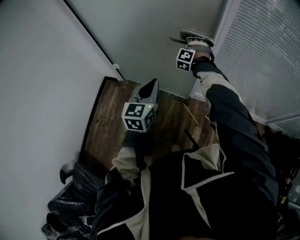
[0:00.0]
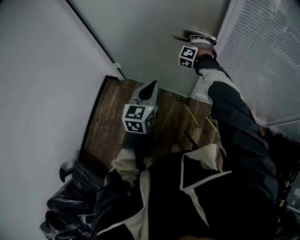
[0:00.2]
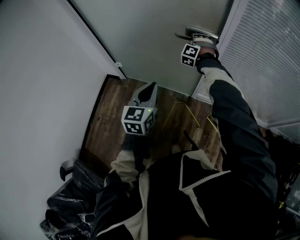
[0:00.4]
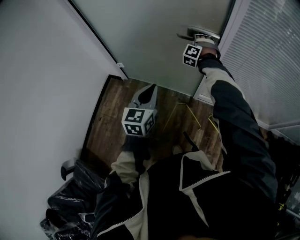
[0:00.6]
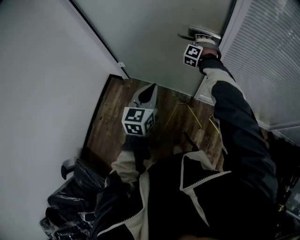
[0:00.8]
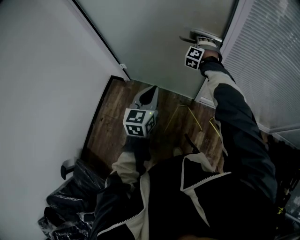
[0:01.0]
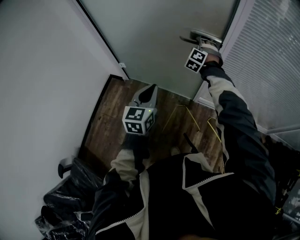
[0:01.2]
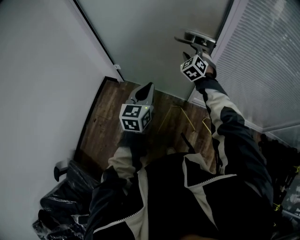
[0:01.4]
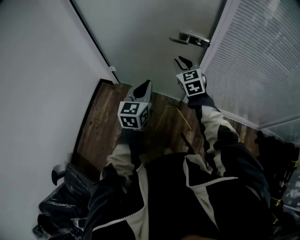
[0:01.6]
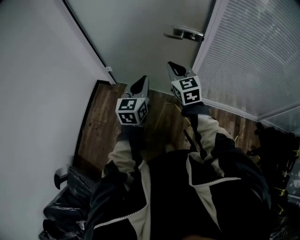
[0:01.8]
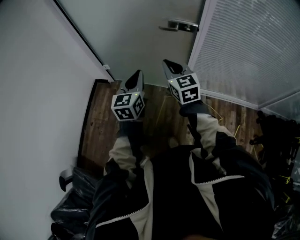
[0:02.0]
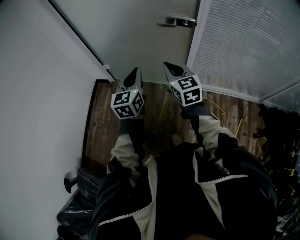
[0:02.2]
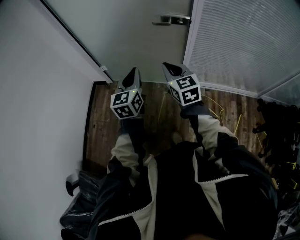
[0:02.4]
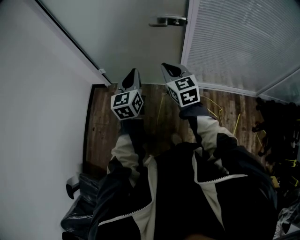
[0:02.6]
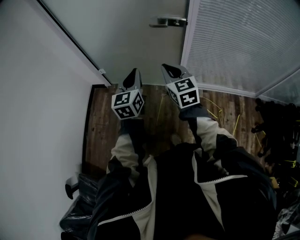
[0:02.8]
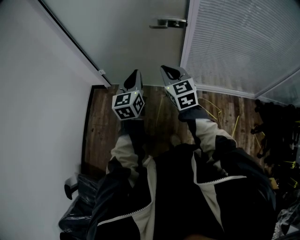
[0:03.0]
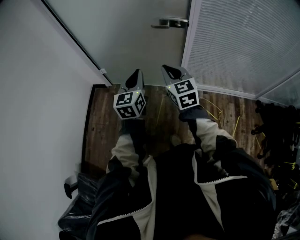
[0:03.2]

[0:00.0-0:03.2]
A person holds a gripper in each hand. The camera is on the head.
0:00.0 to 0:01.6: The right gripper moves backward and upward, approximately 15 cm, twists some 60 degrees clockwise, seen from behind, and opens, then closes once more.
0:01.6 to 0:03.2: The right gripper moves backward, approximately 15 cm.

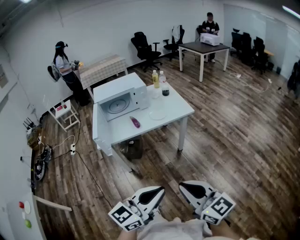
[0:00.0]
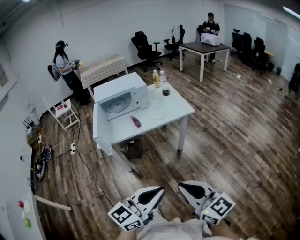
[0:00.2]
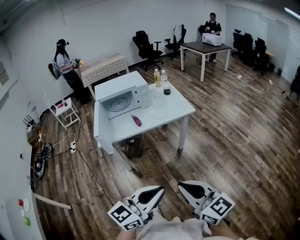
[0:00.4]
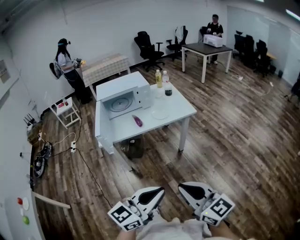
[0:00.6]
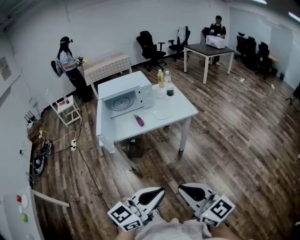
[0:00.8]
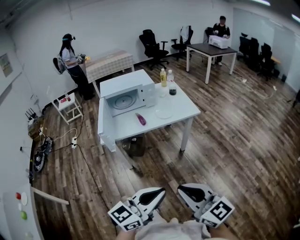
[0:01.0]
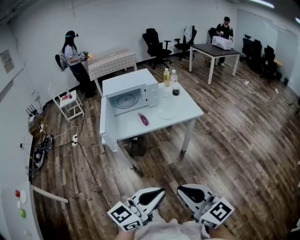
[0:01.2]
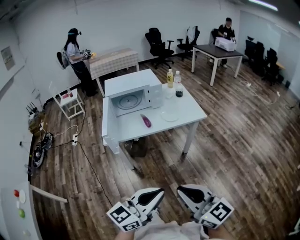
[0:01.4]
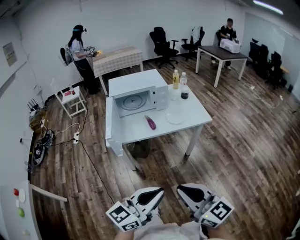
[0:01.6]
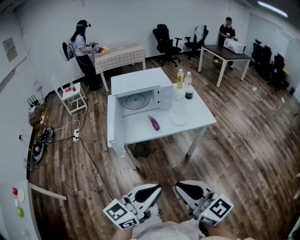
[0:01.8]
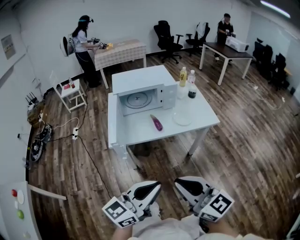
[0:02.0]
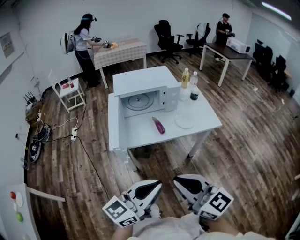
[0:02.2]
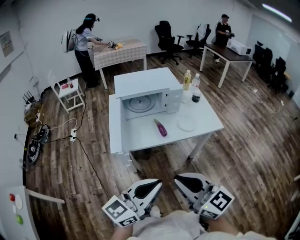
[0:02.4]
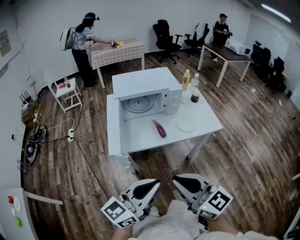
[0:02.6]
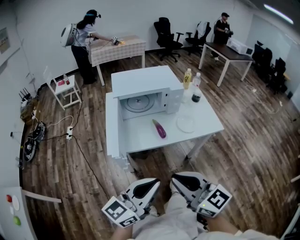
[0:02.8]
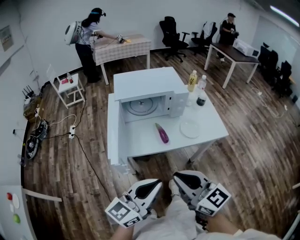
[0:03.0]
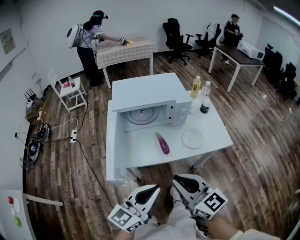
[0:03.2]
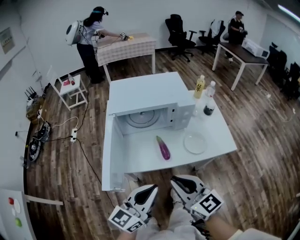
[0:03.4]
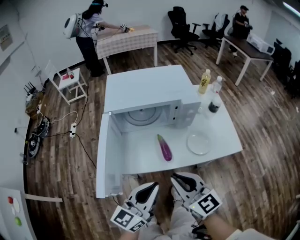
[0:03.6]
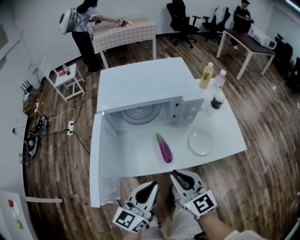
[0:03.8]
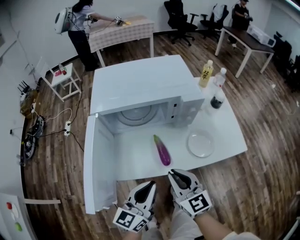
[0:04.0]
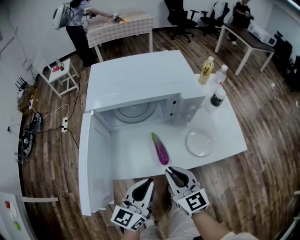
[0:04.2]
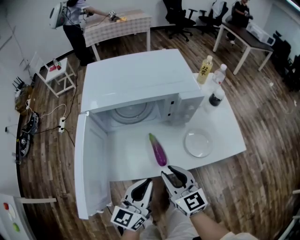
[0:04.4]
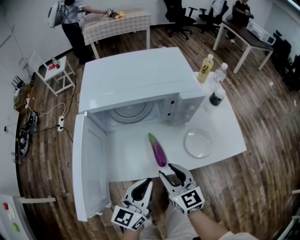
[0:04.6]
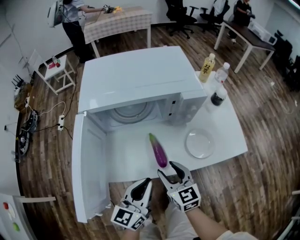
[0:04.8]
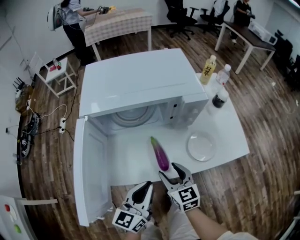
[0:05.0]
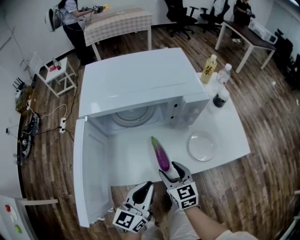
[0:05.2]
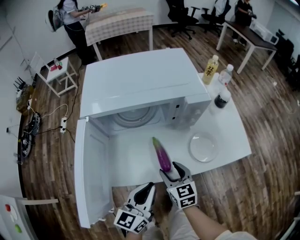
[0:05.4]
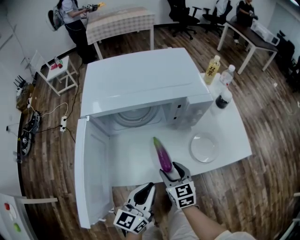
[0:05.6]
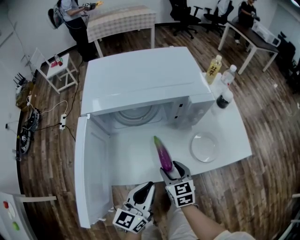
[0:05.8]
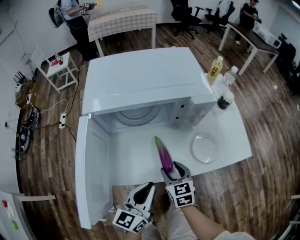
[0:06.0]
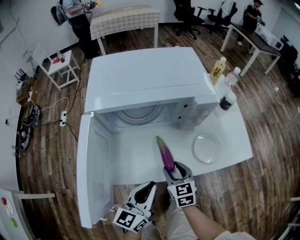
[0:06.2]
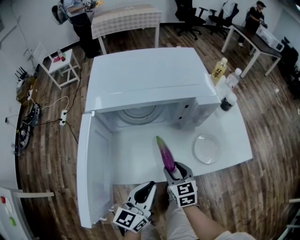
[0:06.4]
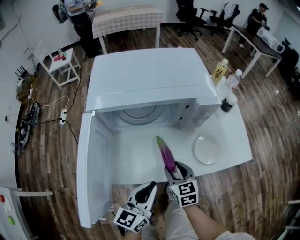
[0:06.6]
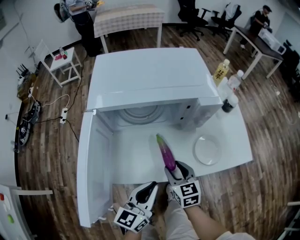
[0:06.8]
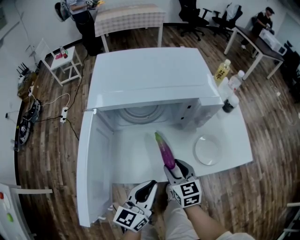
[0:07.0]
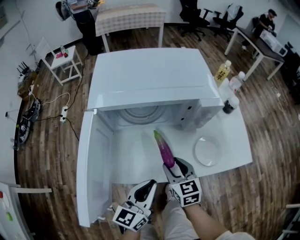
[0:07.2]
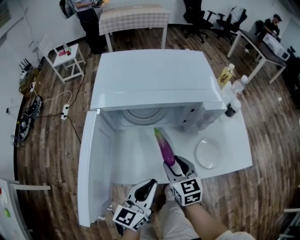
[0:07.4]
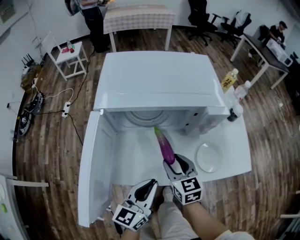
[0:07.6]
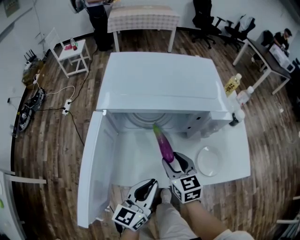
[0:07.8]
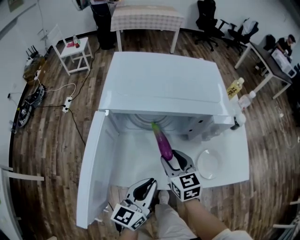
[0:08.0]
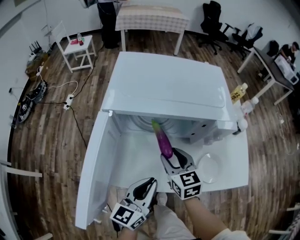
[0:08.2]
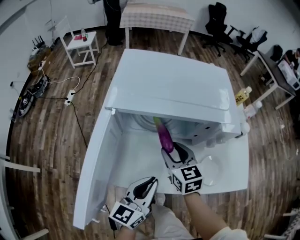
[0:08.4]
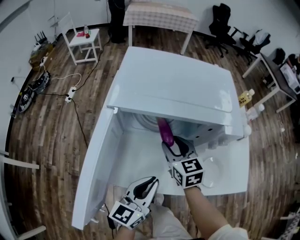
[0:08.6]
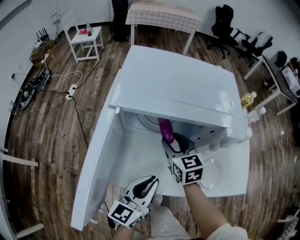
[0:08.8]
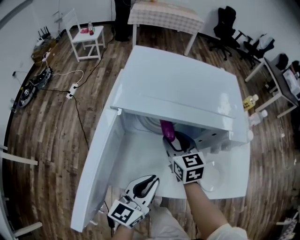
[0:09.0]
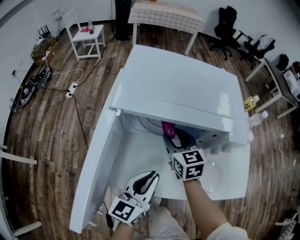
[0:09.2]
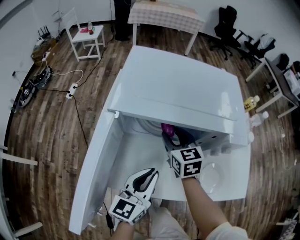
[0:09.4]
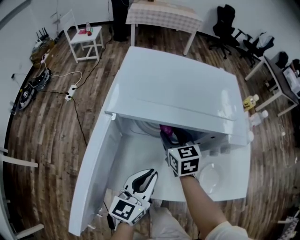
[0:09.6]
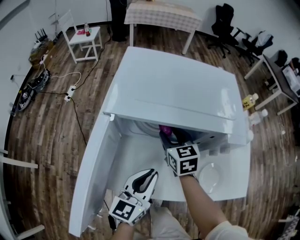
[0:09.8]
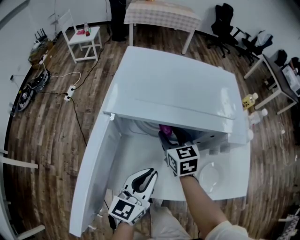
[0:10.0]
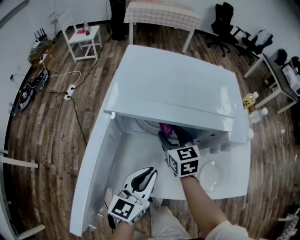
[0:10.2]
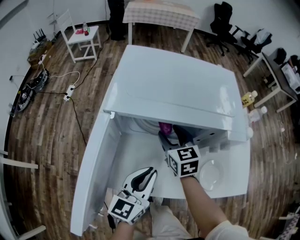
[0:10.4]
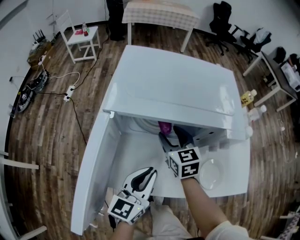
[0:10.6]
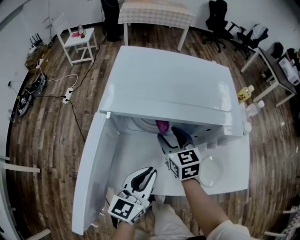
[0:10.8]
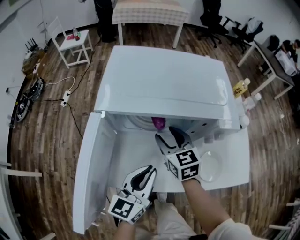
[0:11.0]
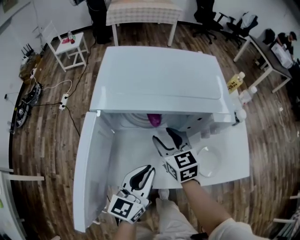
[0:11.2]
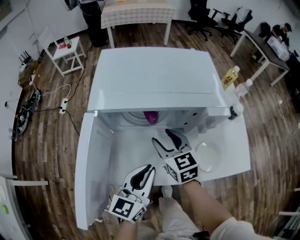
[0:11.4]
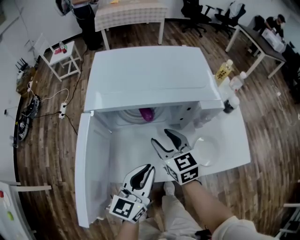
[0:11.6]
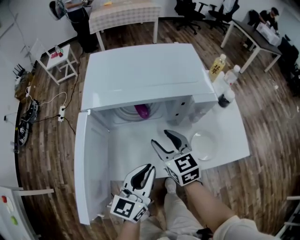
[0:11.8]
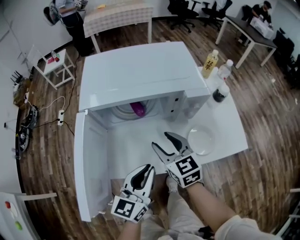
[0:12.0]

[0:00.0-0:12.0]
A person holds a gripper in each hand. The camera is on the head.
0:00.0 to 0:01.6: Both grippers move to the left and forward, roughly 10 cm.
0:01.6 to 0:03.0: The two grippers go roughly 25 cm forward and to the left.
0:03.0 to 0:04.4: The grippers both shift forward and downward by roughly 30 cm. The left gripper rotates approximately 20 degrees.
0:04.4 to 0:06.0: The right gripper travels downward and forward by some 10 cm, changes its angle by some 20 degrees, and opens its fingers.
0:06.0 to 0:07.6: The right gripper travels upward and forward by approximately 5 cm.
0:07.6 to 0:09.0: The left gripper travels forward by some 5 cm. Meanwhile the right gripper goes some 15 cm forward and to the left.
0:09.0 to 0:10.4: The grippers move only a little.
0:10.4 to 0:12.0: The left gripper travels backward by approximately 5 cm, while the right gripper moves backward, some 15 cm.

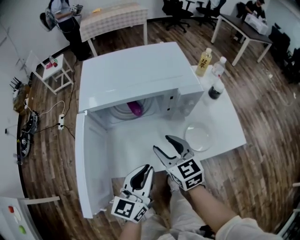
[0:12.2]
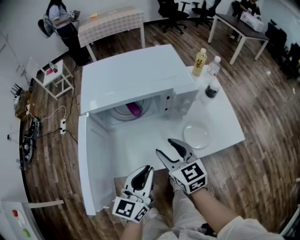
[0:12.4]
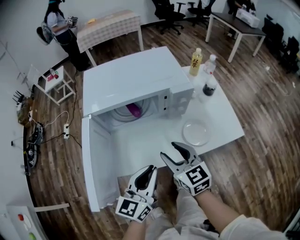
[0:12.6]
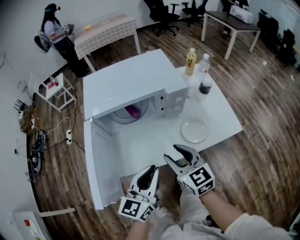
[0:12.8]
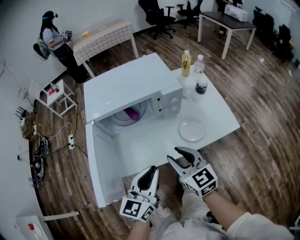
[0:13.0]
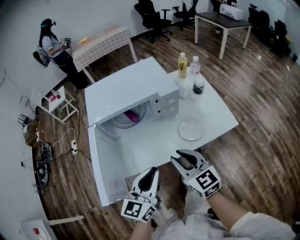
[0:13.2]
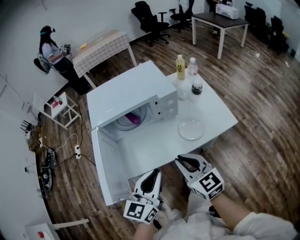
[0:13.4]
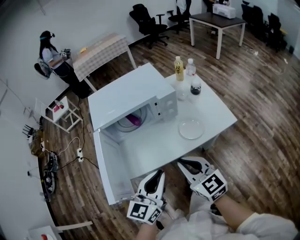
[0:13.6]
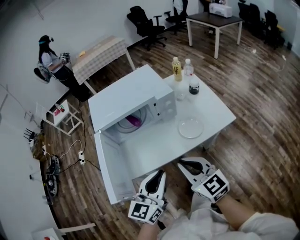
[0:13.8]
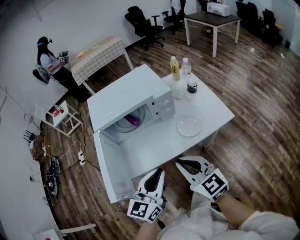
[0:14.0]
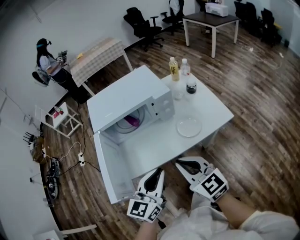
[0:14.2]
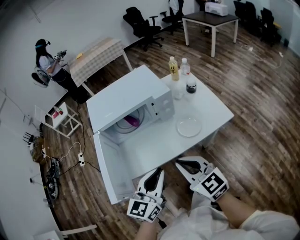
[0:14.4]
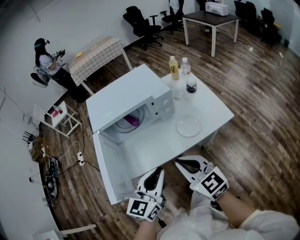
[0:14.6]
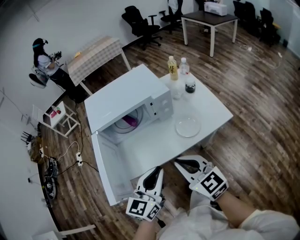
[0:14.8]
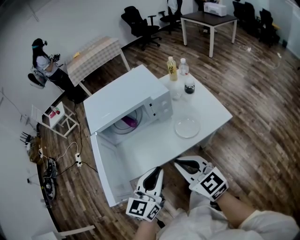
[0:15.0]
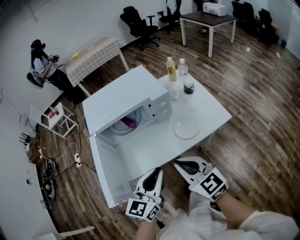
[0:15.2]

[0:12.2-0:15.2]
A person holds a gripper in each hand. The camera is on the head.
0:12.2 to 0:13.8: The right gripper heads backward and upward, covering some 20 cm, and closes up. The left gripper goes approximately 15 cm backward and upward.
0:13.8 to 0:15.2: The grippers stay close to where they were, moving slightly.

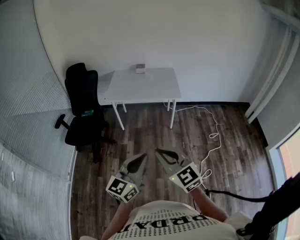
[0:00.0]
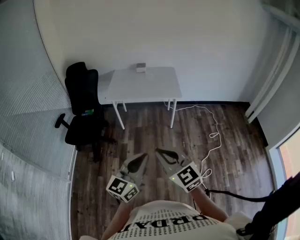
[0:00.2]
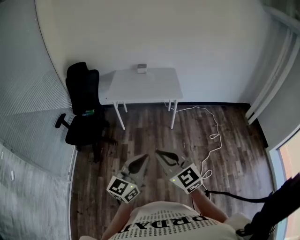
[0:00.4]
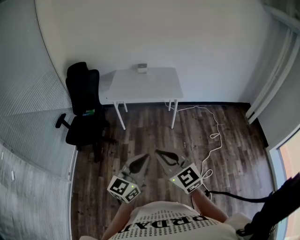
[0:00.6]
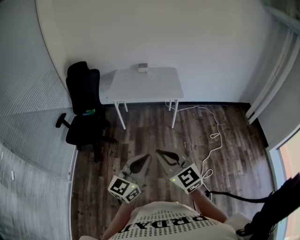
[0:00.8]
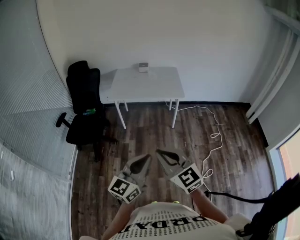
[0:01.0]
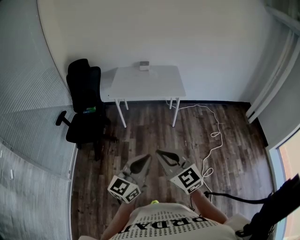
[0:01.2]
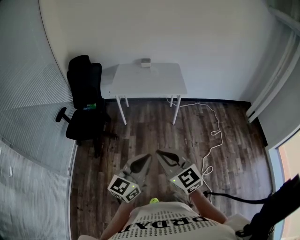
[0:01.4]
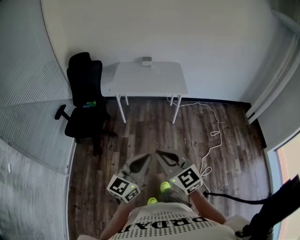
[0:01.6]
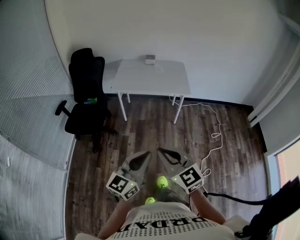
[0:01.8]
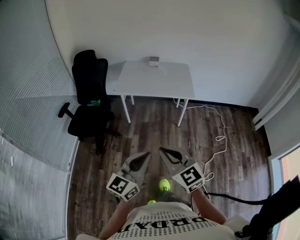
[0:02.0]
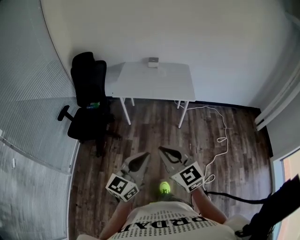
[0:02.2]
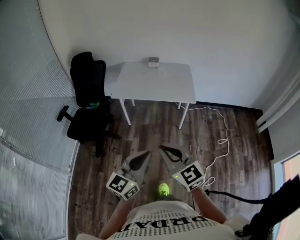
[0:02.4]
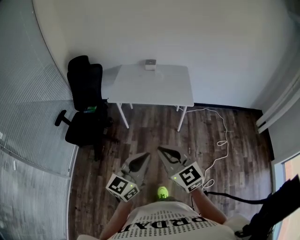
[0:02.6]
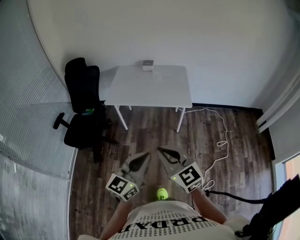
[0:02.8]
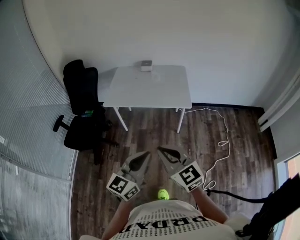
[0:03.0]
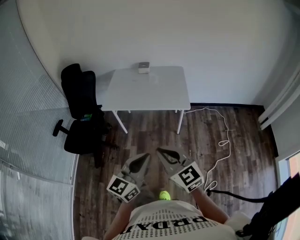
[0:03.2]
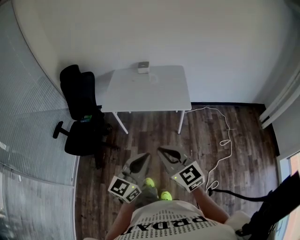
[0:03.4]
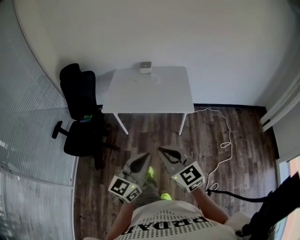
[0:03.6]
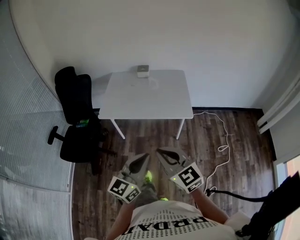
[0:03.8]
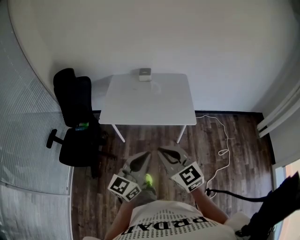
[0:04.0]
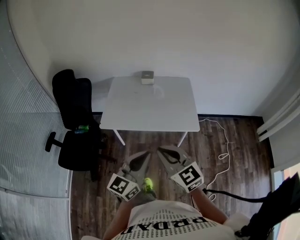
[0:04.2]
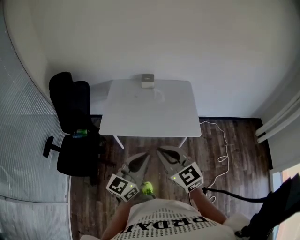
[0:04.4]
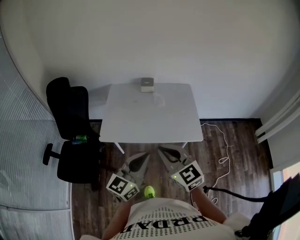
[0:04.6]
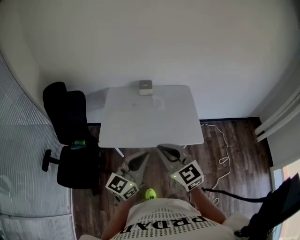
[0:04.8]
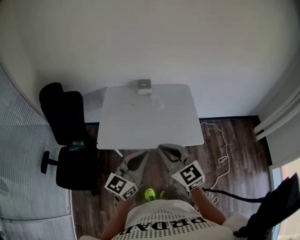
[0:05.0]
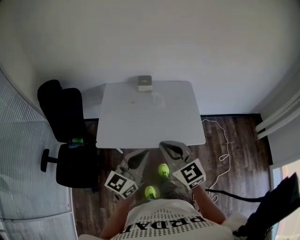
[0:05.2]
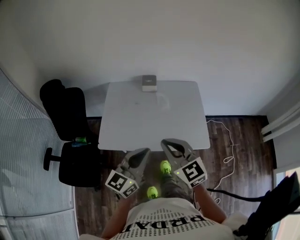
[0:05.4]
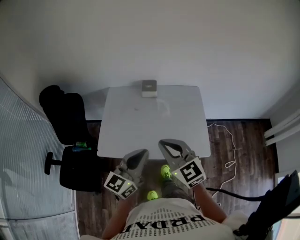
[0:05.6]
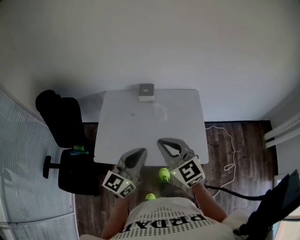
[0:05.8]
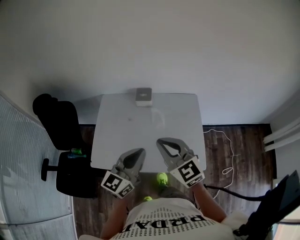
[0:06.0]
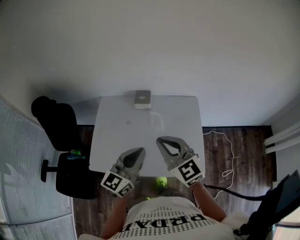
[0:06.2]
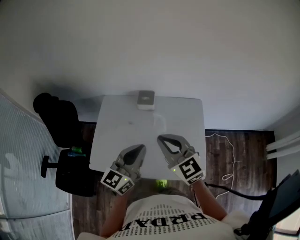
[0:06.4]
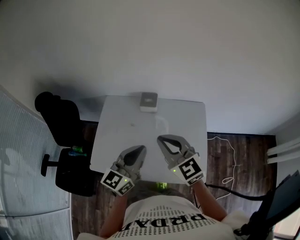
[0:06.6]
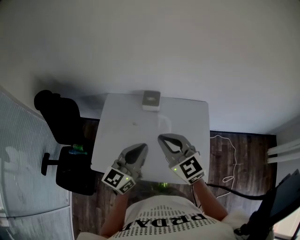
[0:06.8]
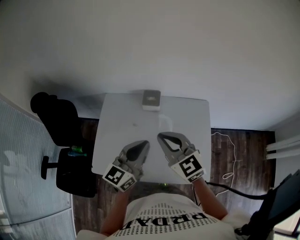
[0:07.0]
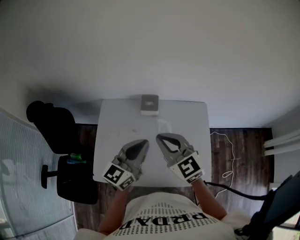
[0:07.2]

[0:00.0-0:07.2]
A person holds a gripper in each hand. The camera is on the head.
0:00.0 to 0:01.4: The right gripper goes some 5 cm to the left, while the left gripper ends up approximately 5 cm from where it was.
0:01.4 to 0:02.8: Both grippers travel together forward and to the right, some 25 cm.
0:02.8 to 0:04.4: The grippers both shift forward by approximately 30 cm.
0:04.4 to 0:05.8: The two grippers go about 30 cm forward.
0:05.8 to 0:07.2: Both grippers move forward, about 20 cm.
